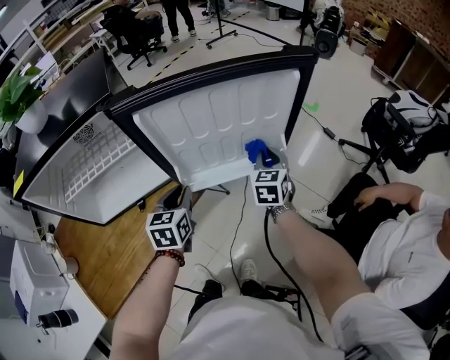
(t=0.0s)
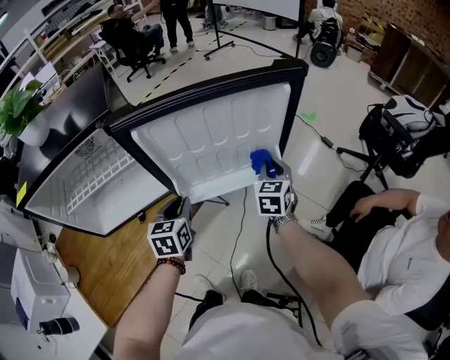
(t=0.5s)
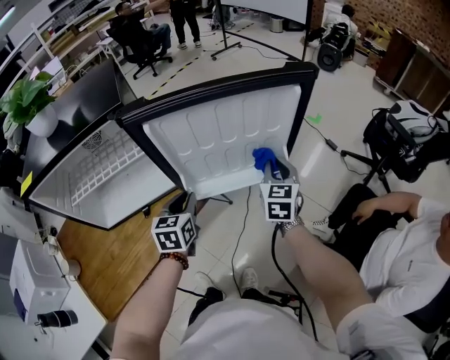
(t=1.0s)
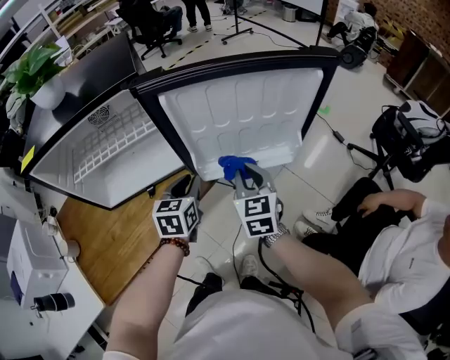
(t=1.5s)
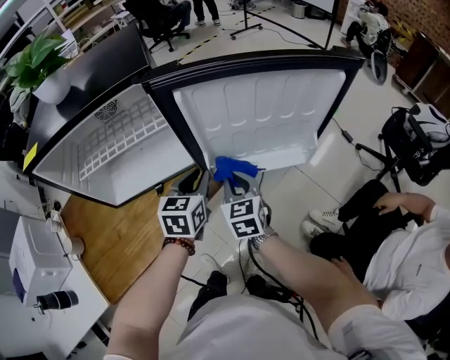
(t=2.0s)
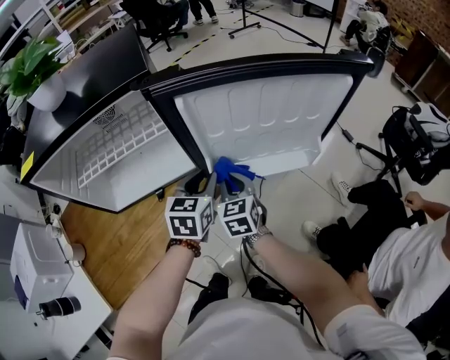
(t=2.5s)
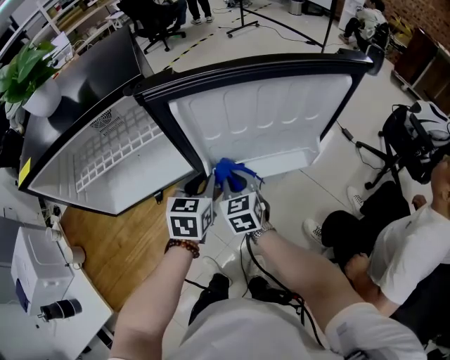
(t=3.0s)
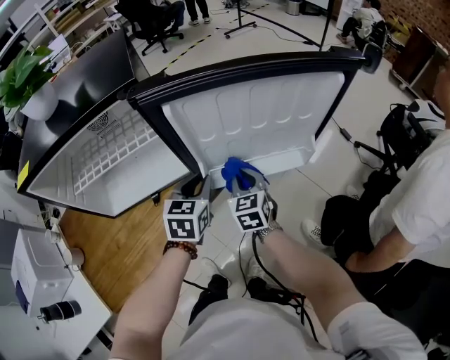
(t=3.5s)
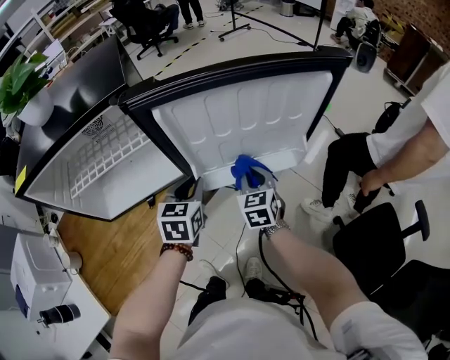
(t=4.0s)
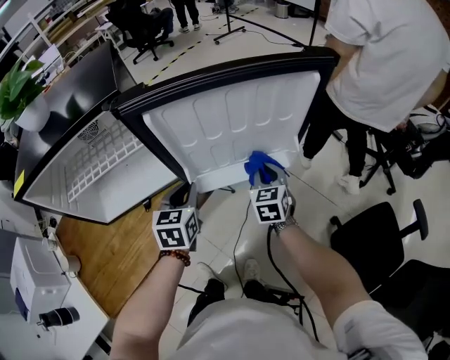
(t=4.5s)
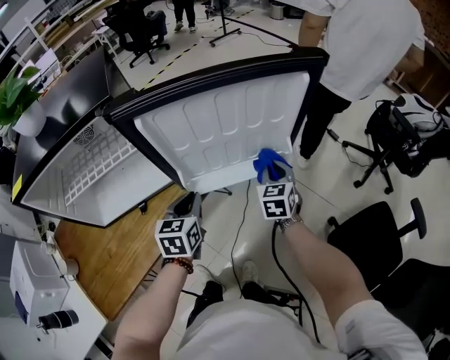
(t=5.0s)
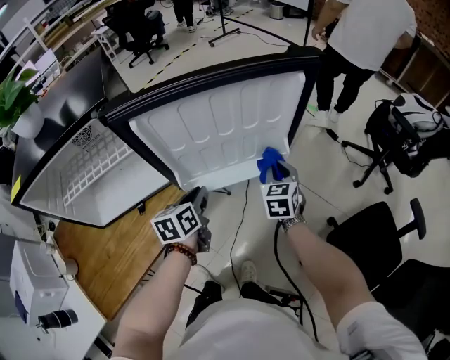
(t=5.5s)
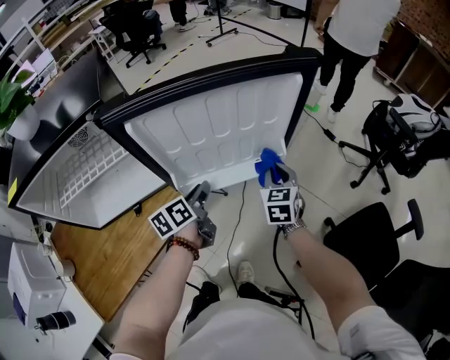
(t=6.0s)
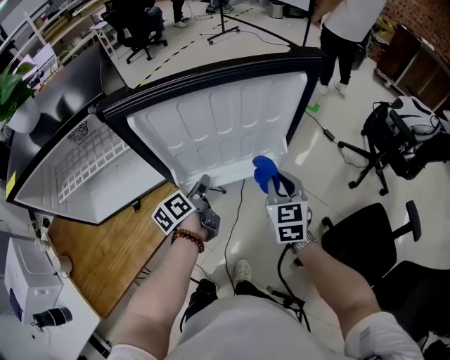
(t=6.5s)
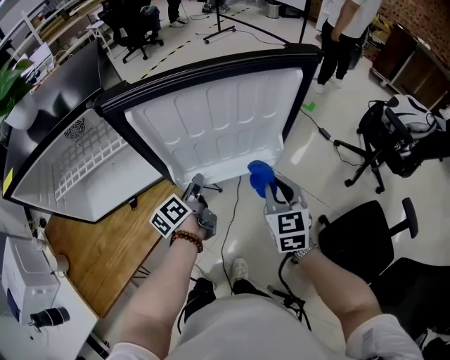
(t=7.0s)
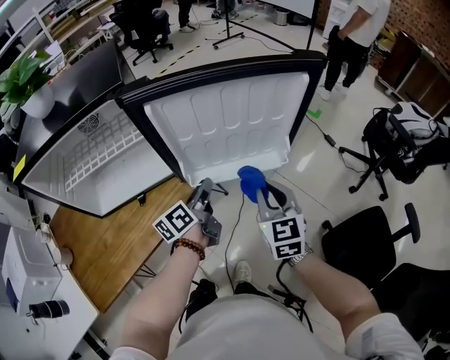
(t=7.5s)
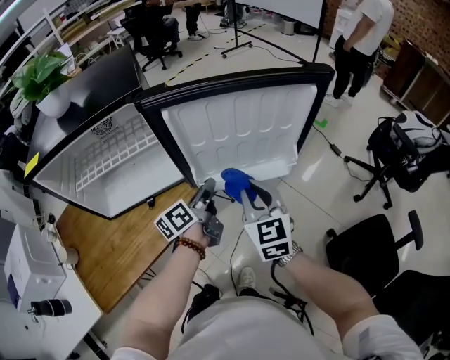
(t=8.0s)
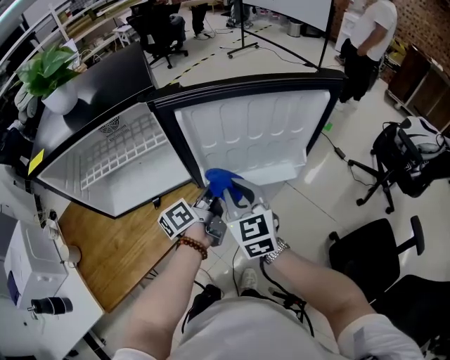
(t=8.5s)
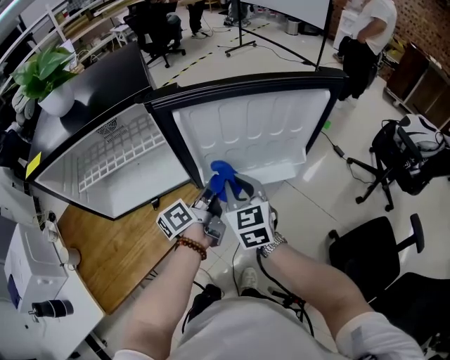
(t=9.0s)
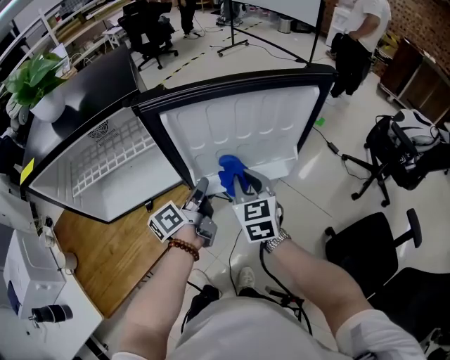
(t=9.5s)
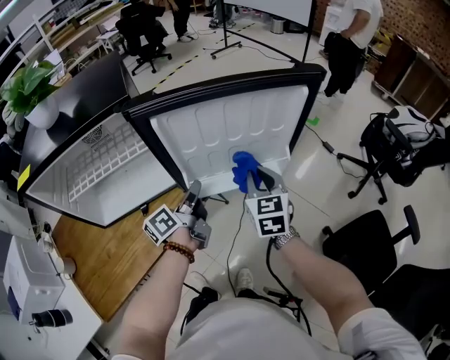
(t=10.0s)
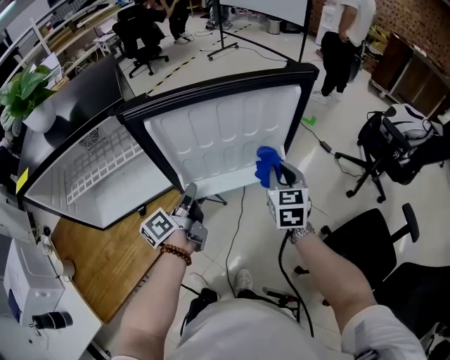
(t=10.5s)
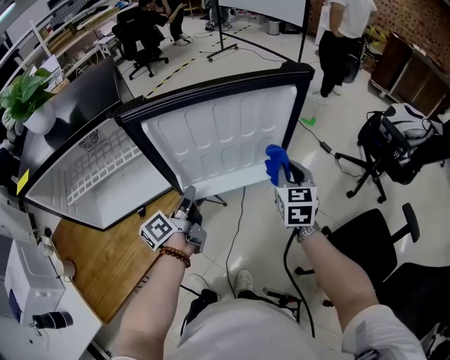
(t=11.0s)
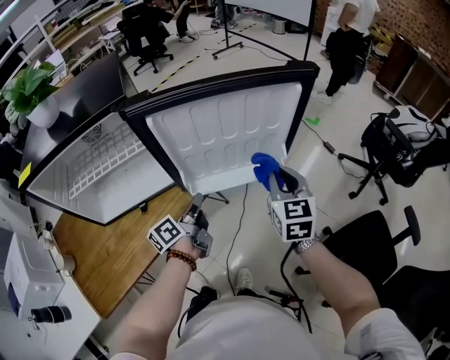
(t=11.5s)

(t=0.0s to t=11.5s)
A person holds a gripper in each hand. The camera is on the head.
t=0.0s - t=2.0s: The right gripper heads to the left and backward, covering about 20 cm, and rotates approximately 20 degrees.
t=2.0s - t=4.0s: The right gripper heads to the right and forward, covering about 10 cm.
t=4.0s - t=6.0s: The right gripper travels to the right by about 15 cm. The left gripper goes some 5 cm to the right, and rolls counterclockwise, seen from behind, by some 40 degrees.
t=6.0s - t=7.5s: The right gripper is displaced backward, upward and to the left by about 15 cm.
t=7.5s - t=9.5s: The left gripper ends up roughly 5 cm from where it was, while the right gripper shifts roughly 10 cm to the left and forward.
t=9.5s - t=11.5s: The right gripper shifts some 15 cm to the right; the left gripper moves some 5 cm.

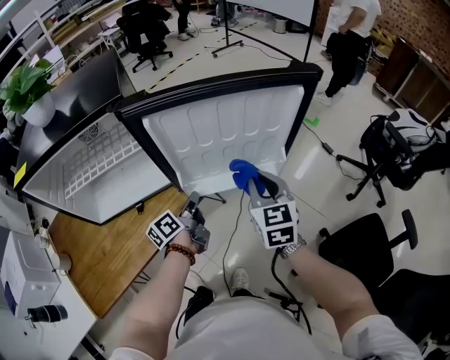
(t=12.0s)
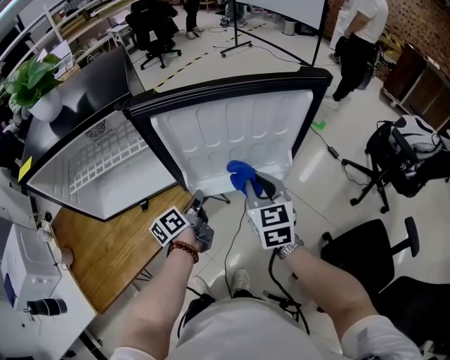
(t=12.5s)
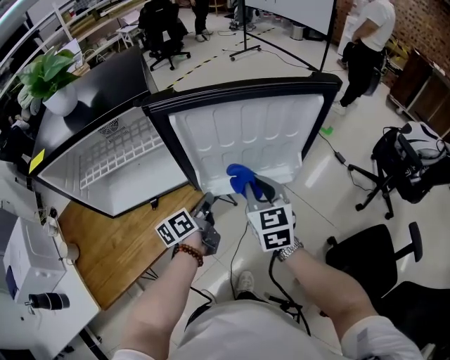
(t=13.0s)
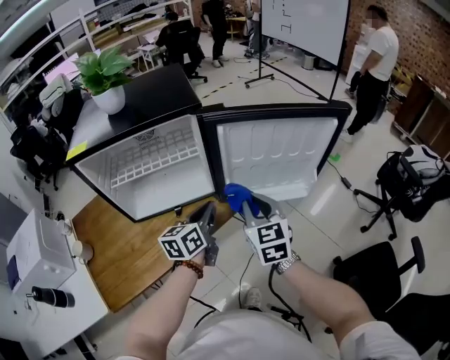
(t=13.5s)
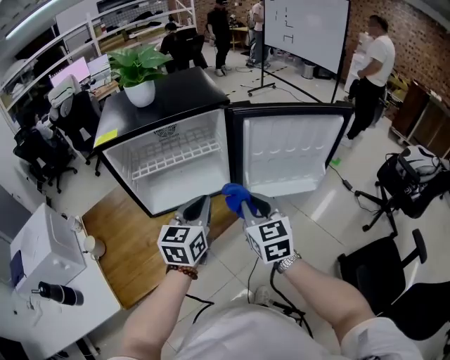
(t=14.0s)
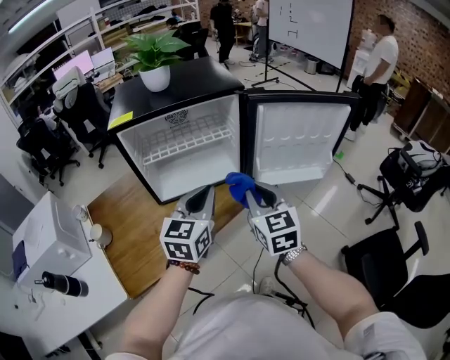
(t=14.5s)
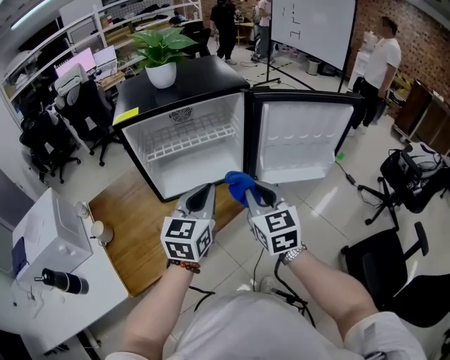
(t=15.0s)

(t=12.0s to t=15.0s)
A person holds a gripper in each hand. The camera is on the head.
t=12.0s - t=13.5s: The right gripper travels to the left and backward by some 15 cm; the left gripper moves upward, backward and to the left, roughly 15 cm, and rotates roughly 30 degrees.
t=13.5s - t=15.0s: The left gripper is displaced to the left, backward and upward by about 20 cm, and rotates roughly 30 degrees. The right gripper is displaced to the left and backward by approximately 15 cm.

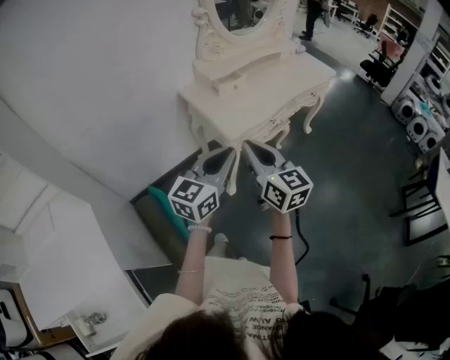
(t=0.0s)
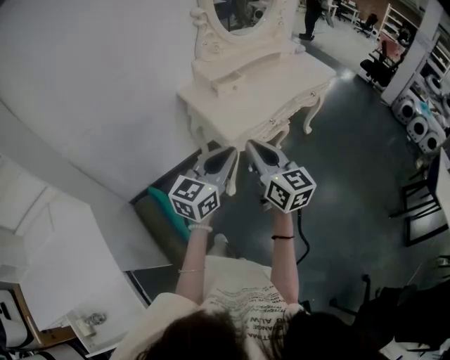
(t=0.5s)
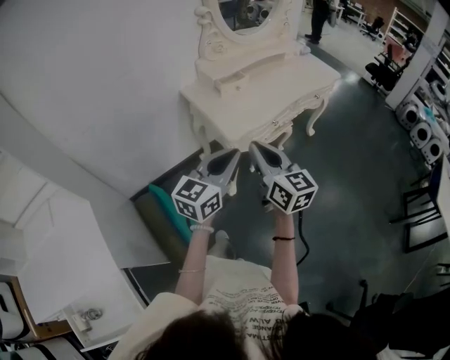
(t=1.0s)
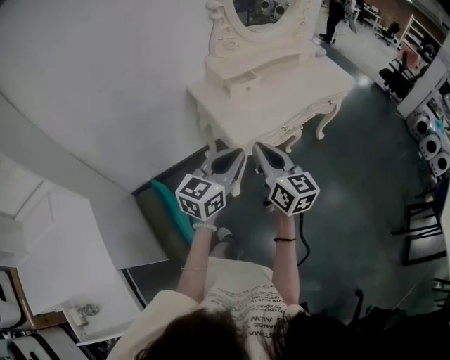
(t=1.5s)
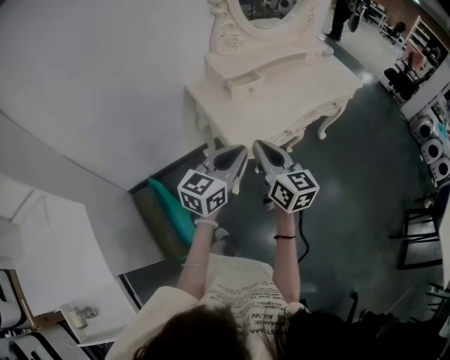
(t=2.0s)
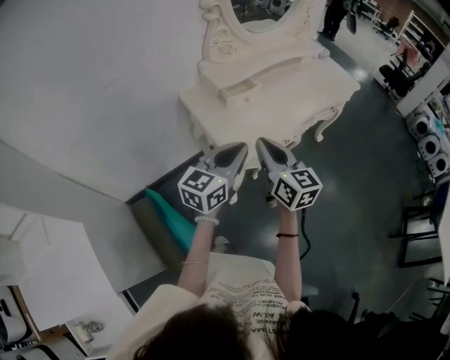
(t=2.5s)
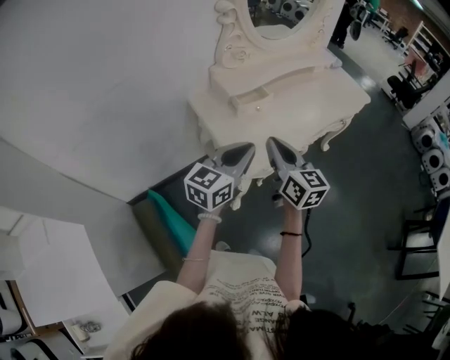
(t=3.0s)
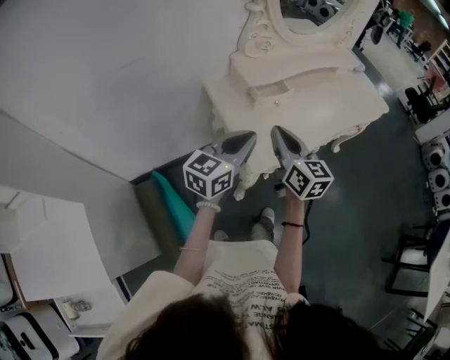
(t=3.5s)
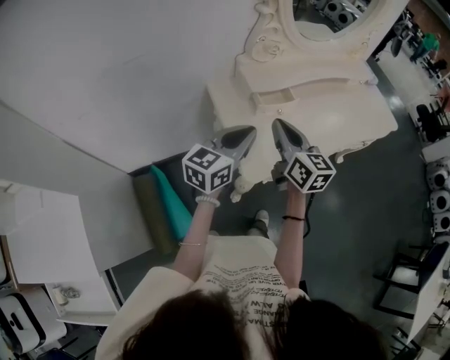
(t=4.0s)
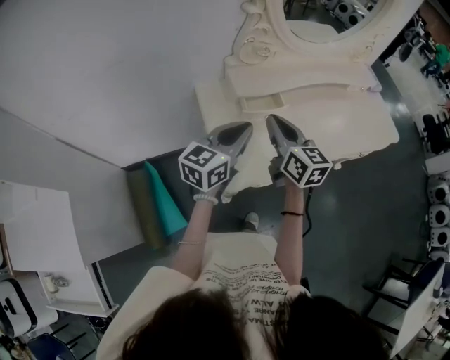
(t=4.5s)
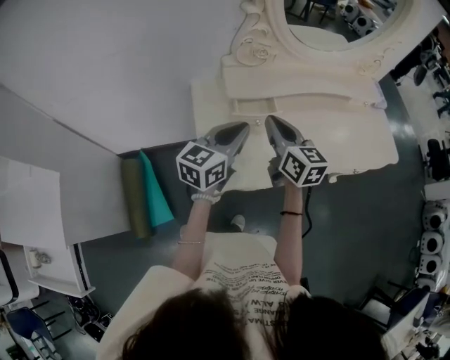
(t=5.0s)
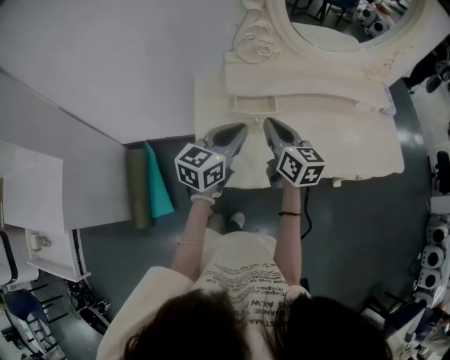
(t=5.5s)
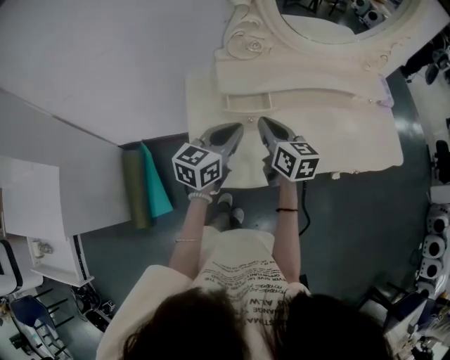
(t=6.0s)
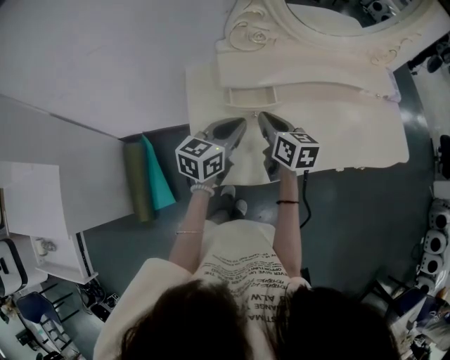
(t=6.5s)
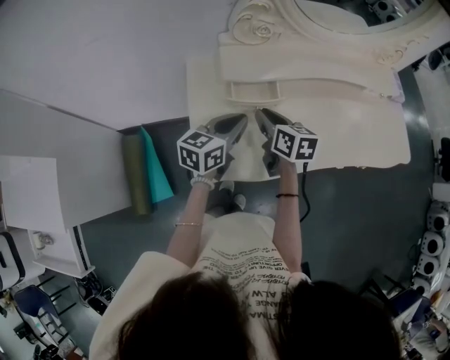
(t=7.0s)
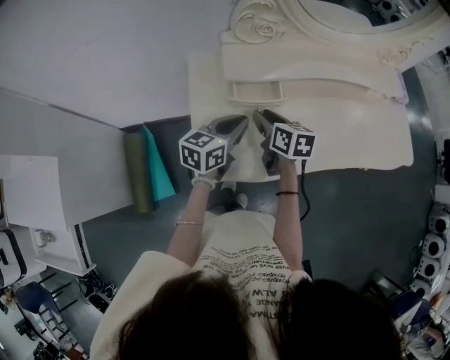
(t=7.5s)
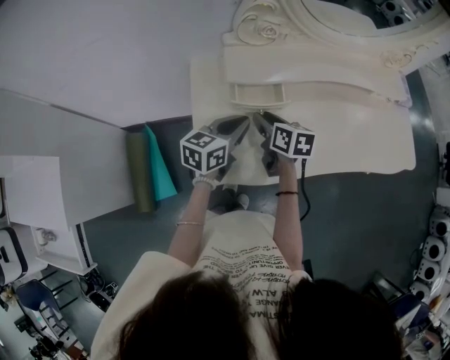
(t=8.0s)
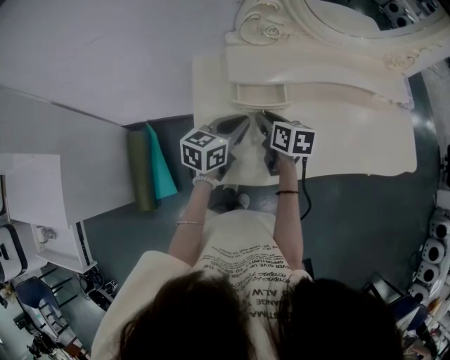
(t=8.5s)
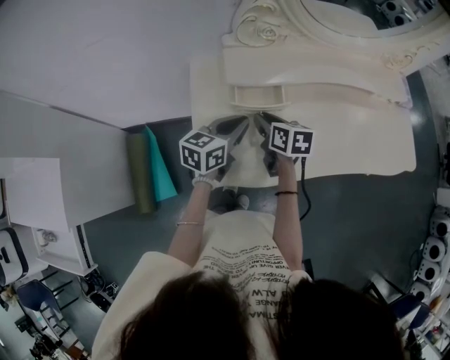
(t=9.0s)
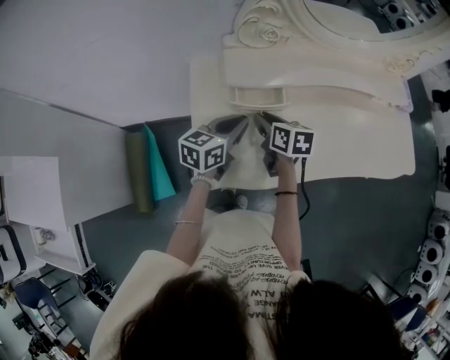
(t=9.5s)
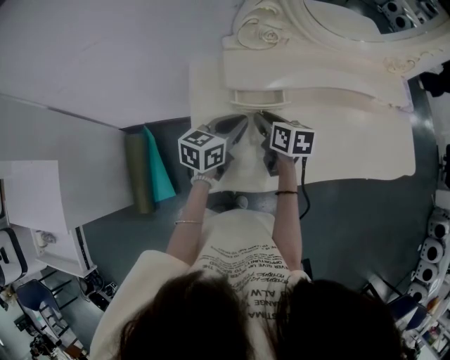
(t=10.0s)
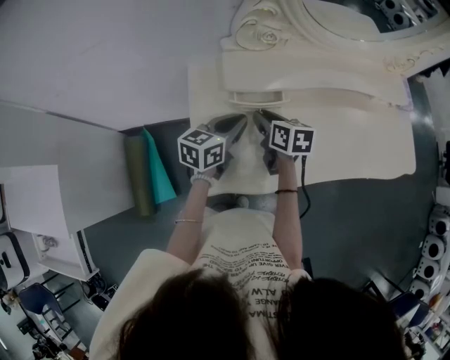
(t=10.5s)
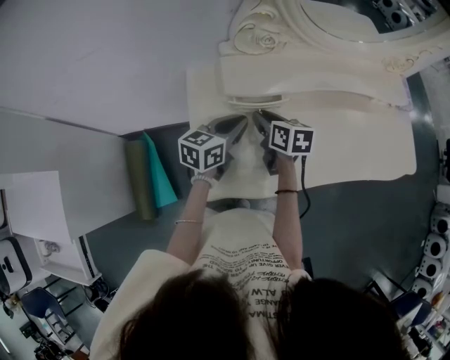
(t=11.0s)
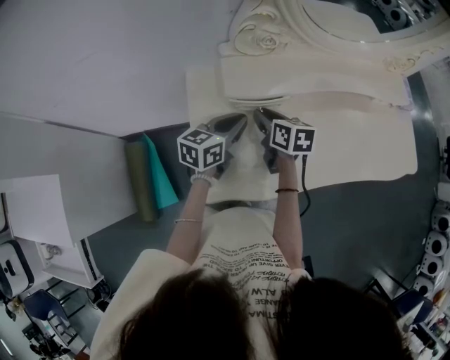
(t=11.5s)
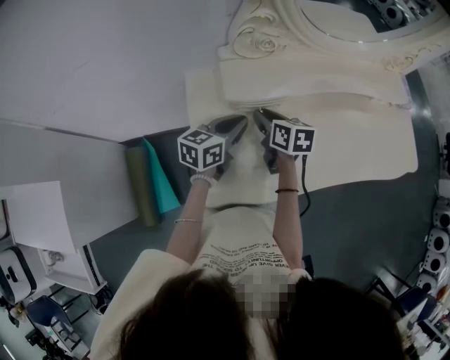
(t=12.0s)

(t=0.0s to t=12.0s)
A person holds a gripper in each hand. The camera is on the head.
t=0.0s - t=2.0s: Both grippers move forward, some 15 cm.
t=2.0s - t=4.0s: Both grippers move forward, some 20 cm.
t=4.0s - t=6.0s: The right gripper travels forward, to the right and downward by roughly 15 cm, and turns by some 20 degrees, while the left gripper heads to the right, forward and downward, covering some 15 cm.
t=6.0s - t=8.0s: Both grippers travel together downward, about 10 cm. The right gripper turns by about 20 degrees, and opens up.
t=8.0s - t=10.0s: There are only small adjustments of the grippers.
t=10.0s - t=12.0s: The grippers make only small movements.
